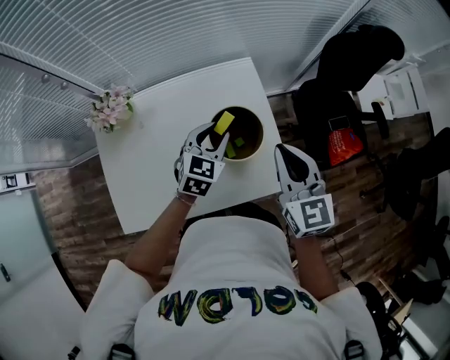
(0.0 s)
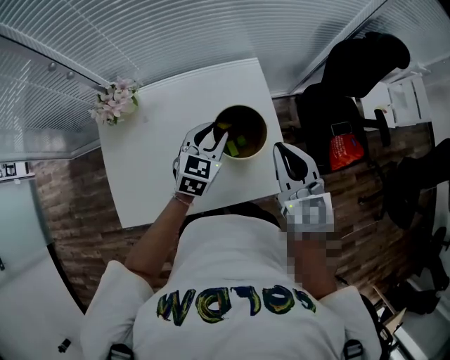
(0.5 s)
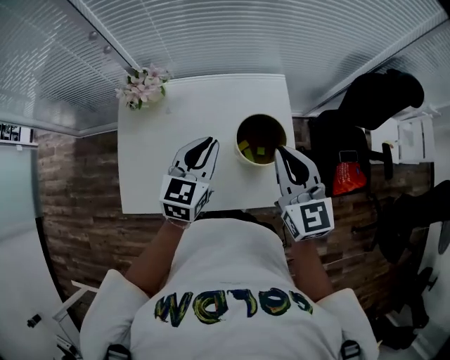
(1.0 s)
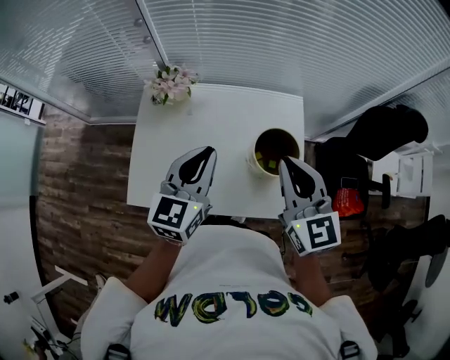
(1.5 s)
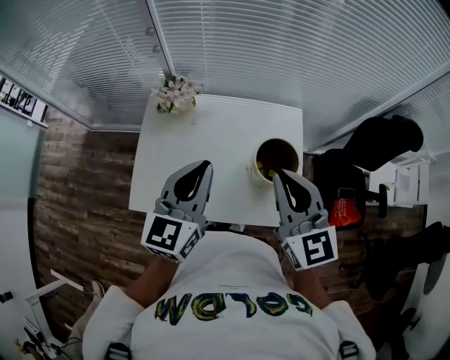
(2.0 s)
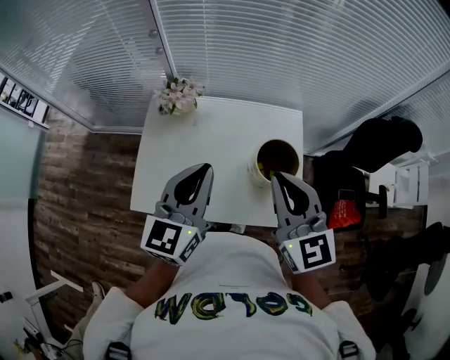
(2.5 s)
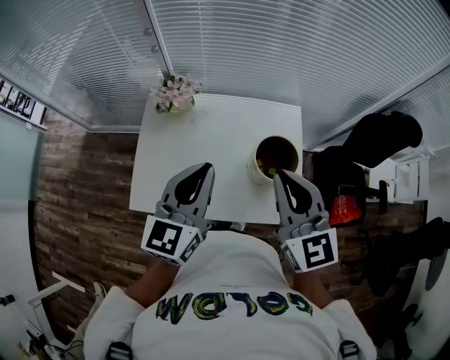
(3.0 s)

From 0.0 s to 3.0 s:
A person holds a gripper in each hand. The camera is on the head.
From 0.0 s to 1.5 s: The right gripper moves to the left and upward, some 15 cm, and swivels roughly 20 degrees; the left gripper goes some 25 cm upward, to the left and backward, rotates approximately 40 degrees, and closes up.
From 1.5 s to 3.0 s: The right gripper ends up about 5 cm from where it was. The left gripper is displaced upward by roughly 5 cm.

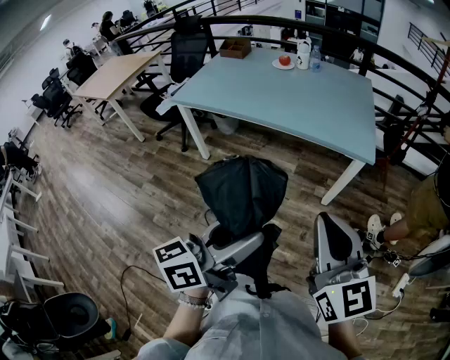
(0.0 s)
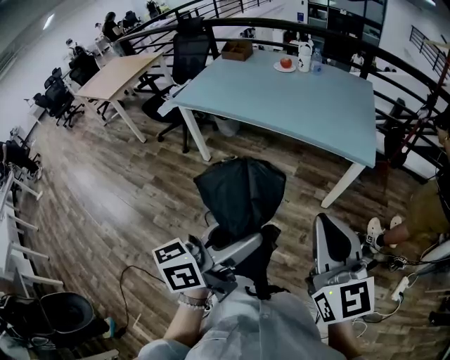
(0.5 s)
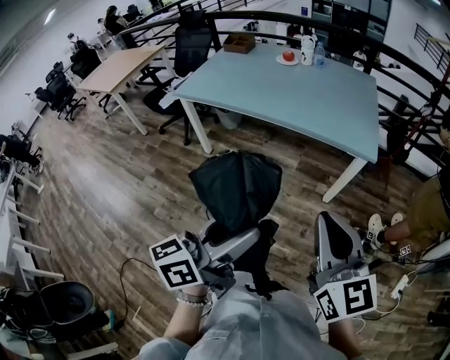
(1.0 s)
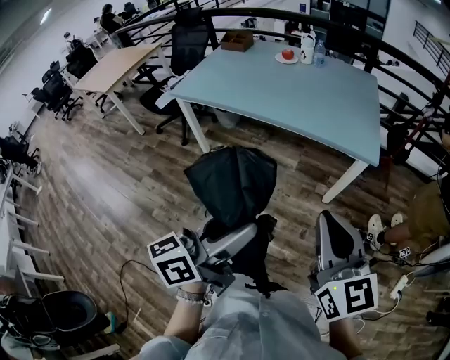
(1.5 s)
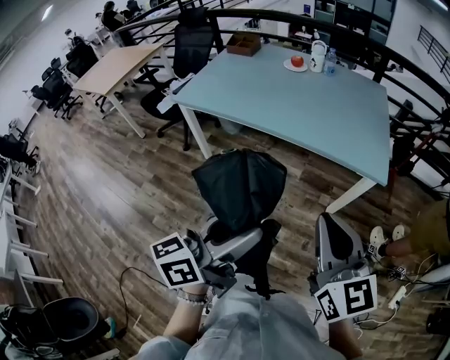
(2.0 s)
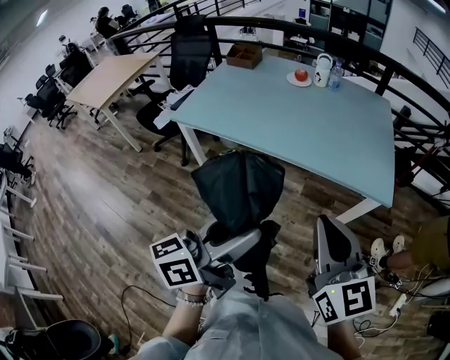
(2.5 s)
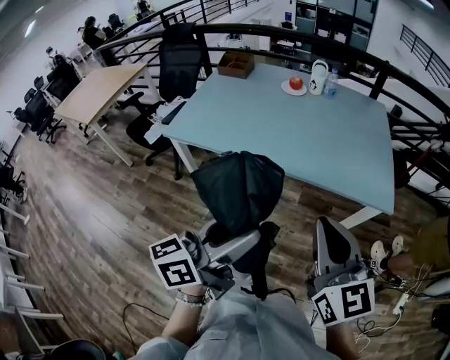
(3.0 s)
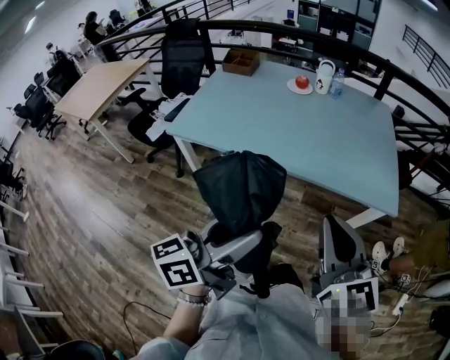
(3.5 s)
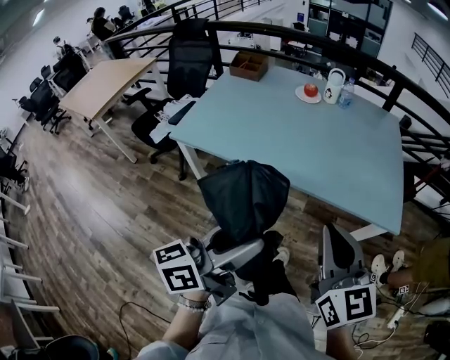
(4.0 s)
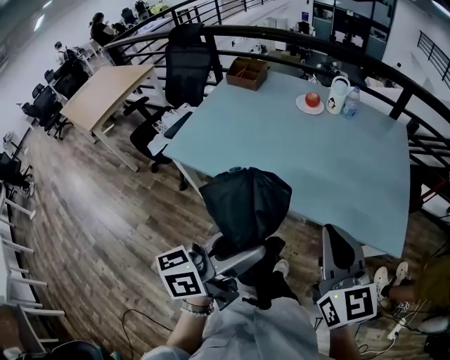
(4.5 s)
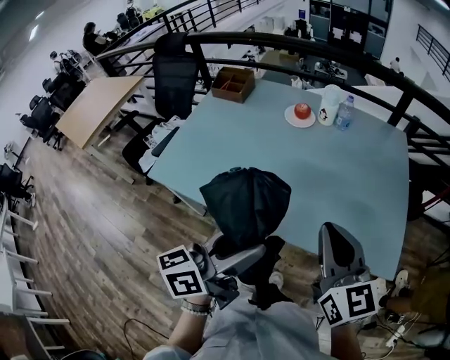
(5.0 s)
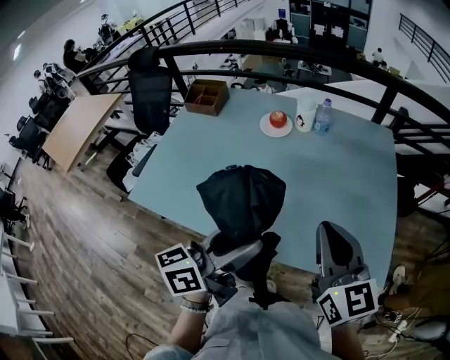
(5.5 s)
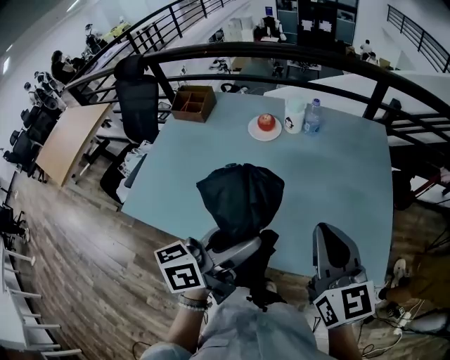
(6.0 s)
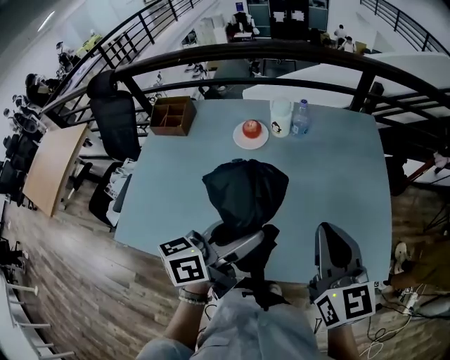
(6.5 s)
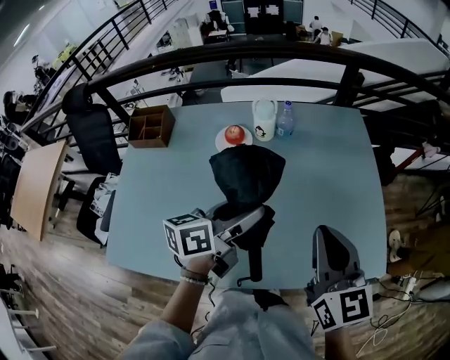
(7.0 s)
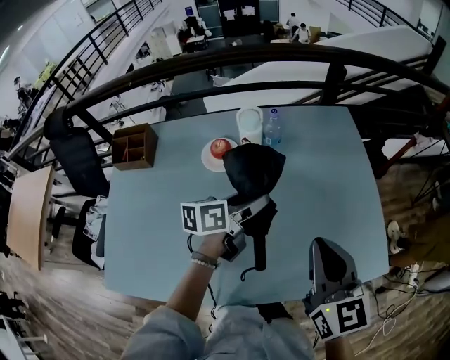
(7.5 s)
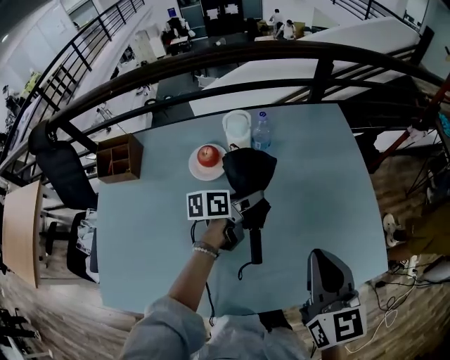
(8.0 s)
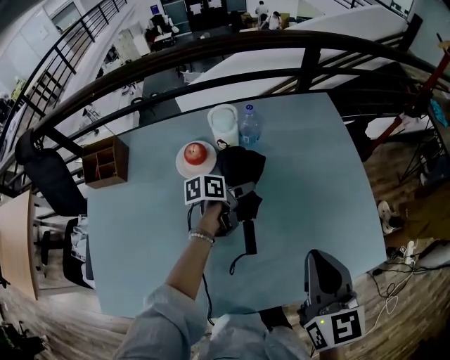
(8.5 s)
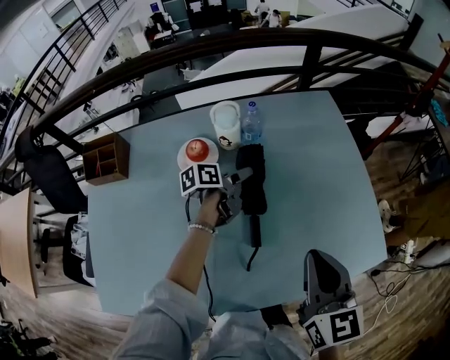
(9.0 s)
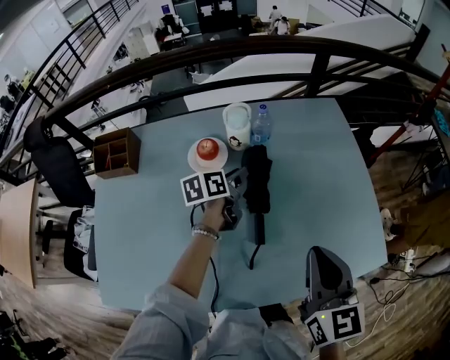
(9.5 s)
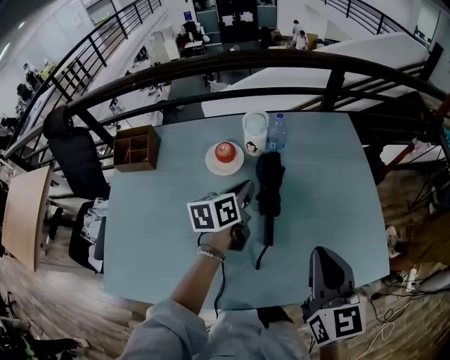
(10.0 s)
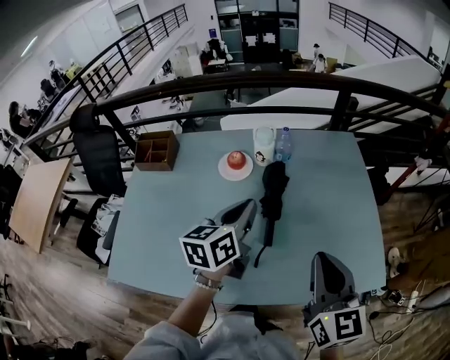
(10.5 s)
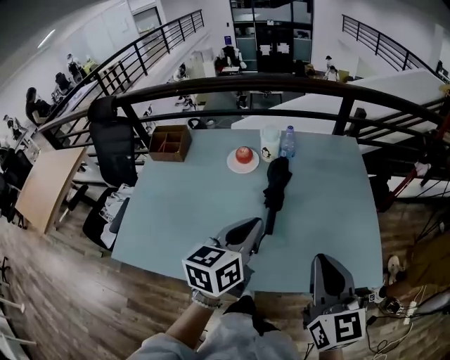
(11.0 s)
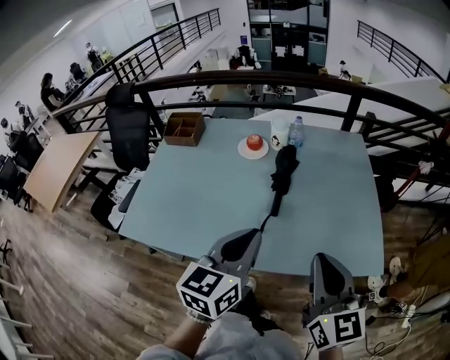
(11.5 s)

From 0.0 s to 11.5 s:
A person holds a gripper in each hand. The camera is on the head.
From 0.0 s to 2.0 s: The left gripper shifts approximately 10 cm forward and to the left; the right gripper goes about 10 cm forward.
From 2.0 s to 4.0 s: The grippers both shift forward and to the left by approximately 20 cm.
From 4.0 s to 6.0 s: Both grippers travel together forward, about 30 cm.
From 6.0 s to 7.5 s: The right gripper is displaced forward by about 10 cm, and changes its angle by about 20 degrees, while the left gripper travels forward and downward by some 30 cm, and rotates about 30 degrees.
From 7.5 s to 9.5 s: The left gripper heads forward, downward and to the left, covering roughly 15 cm, and closes up.
From 9.5 s to 11.5 s: The right gripper moves backward, roughly 15 cm, and rotates some 20 degrees. Meanwhile the left gripper goes approximately 40 cm backward and upward, rotates about 40 degrees, and closes its fingers.

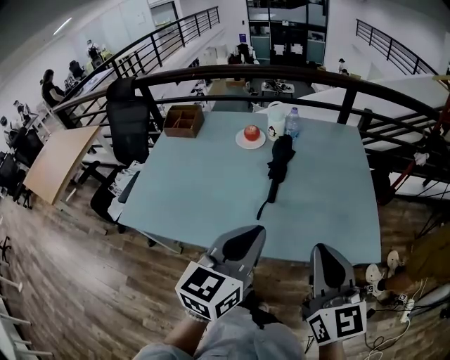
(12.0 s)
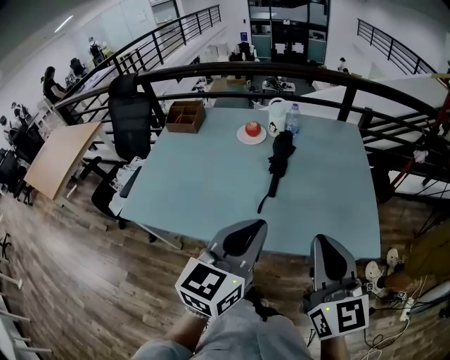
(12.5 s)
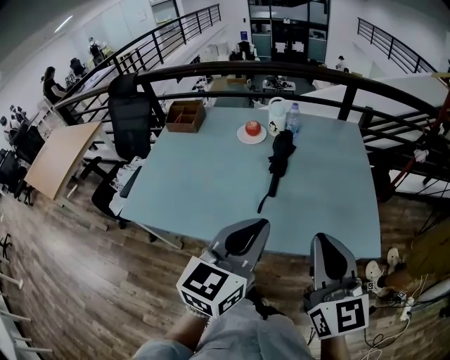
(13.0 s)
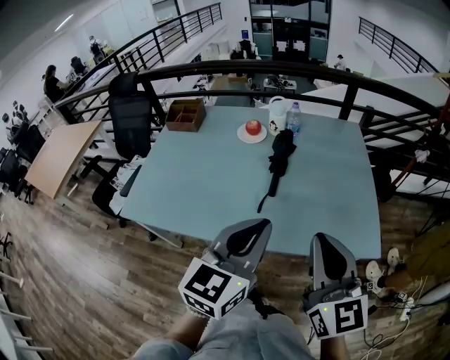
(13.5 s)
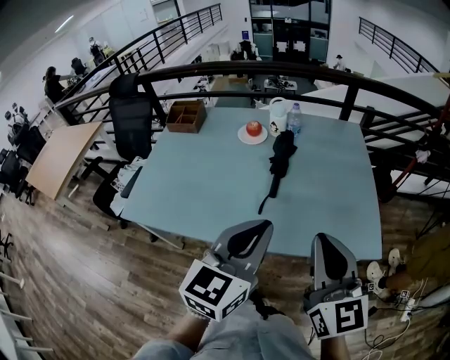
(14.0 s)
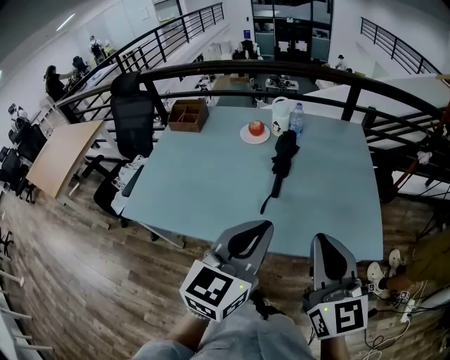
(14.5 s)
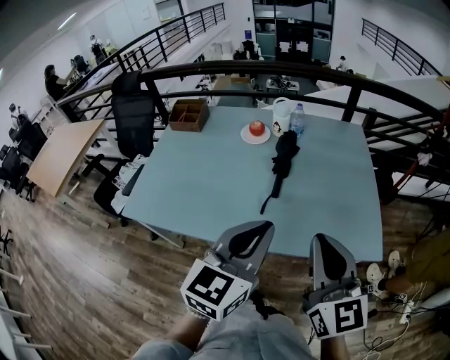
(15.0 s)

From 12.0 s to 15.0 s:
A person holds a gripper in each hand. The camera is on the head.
From 12.0 s to 13.5 s: The grippers make only small movements.
From 13.5 s to 15.0 s: The two grippers keep their place.

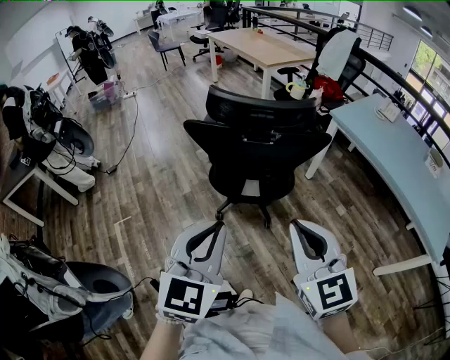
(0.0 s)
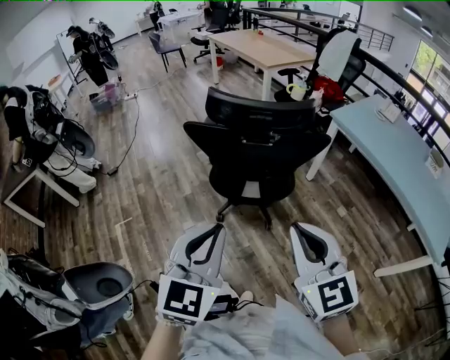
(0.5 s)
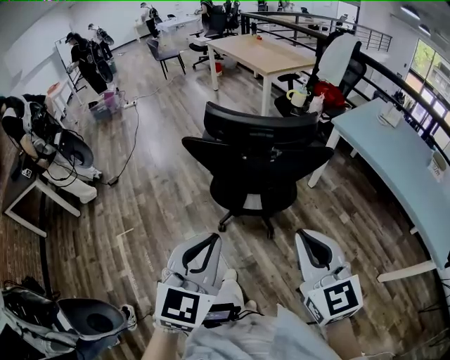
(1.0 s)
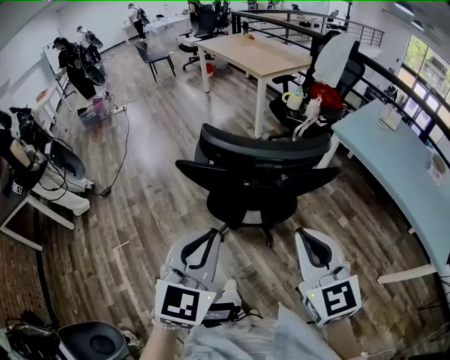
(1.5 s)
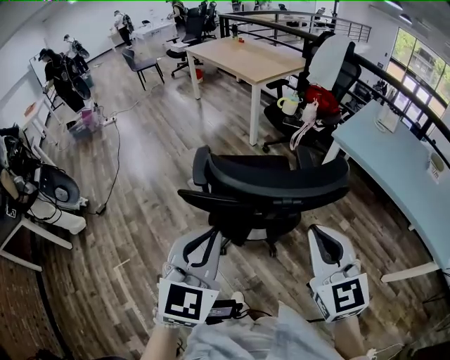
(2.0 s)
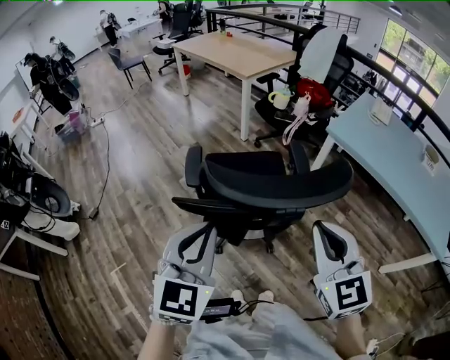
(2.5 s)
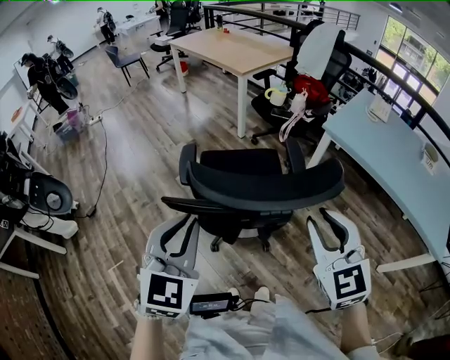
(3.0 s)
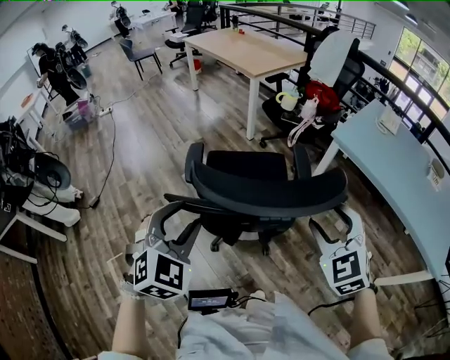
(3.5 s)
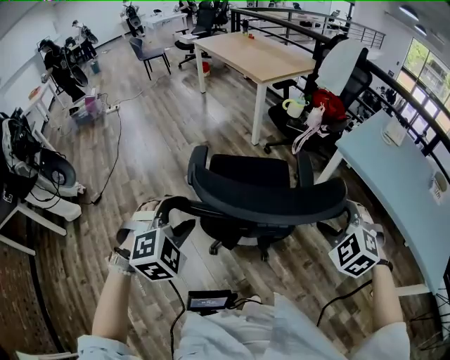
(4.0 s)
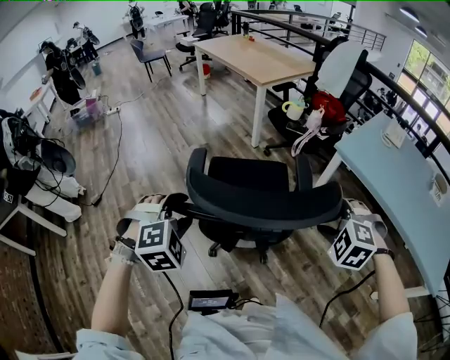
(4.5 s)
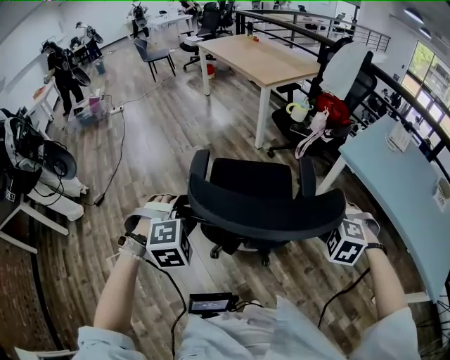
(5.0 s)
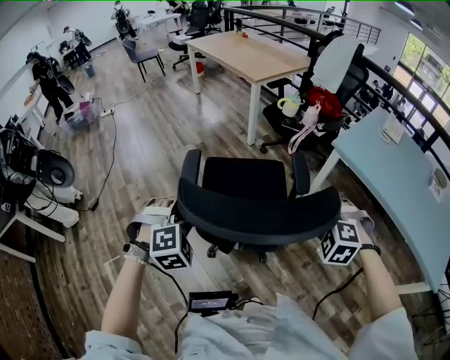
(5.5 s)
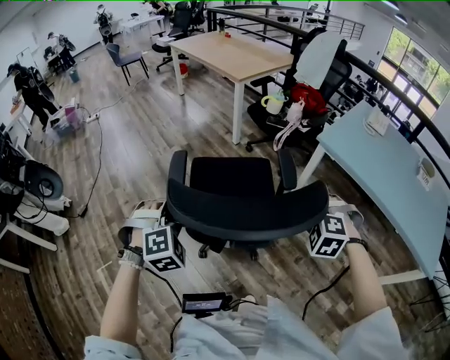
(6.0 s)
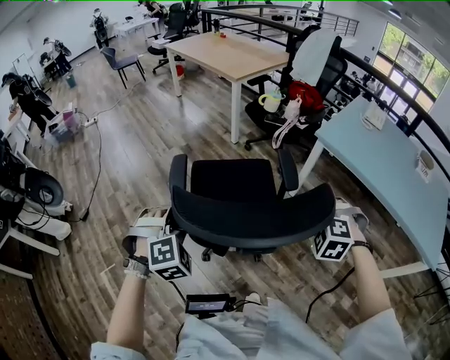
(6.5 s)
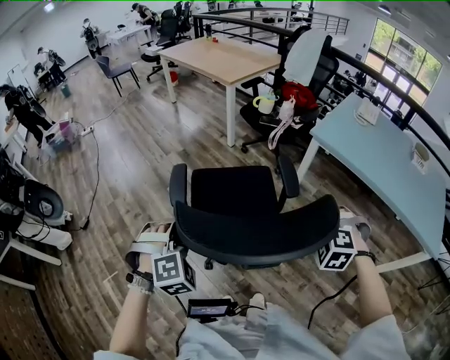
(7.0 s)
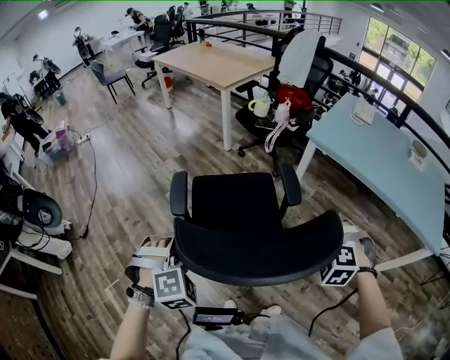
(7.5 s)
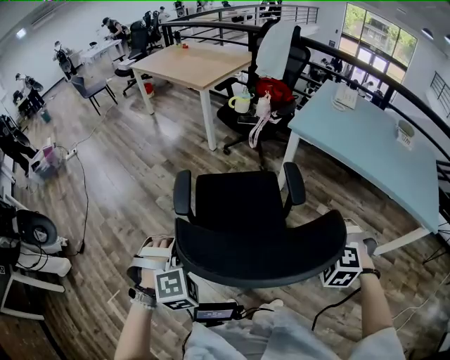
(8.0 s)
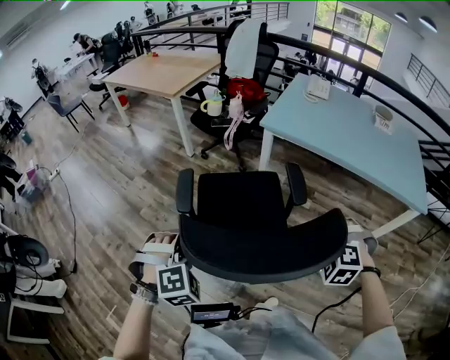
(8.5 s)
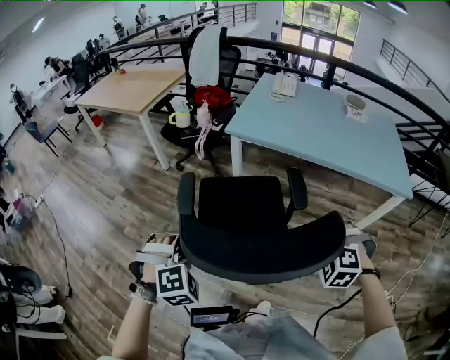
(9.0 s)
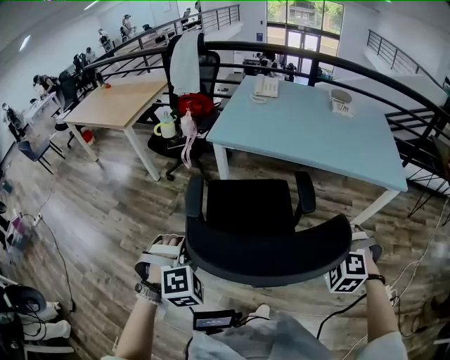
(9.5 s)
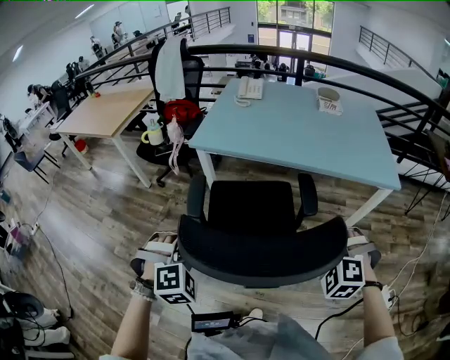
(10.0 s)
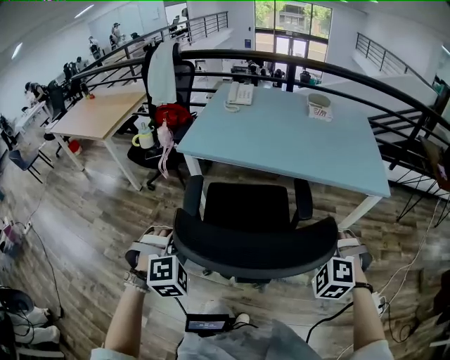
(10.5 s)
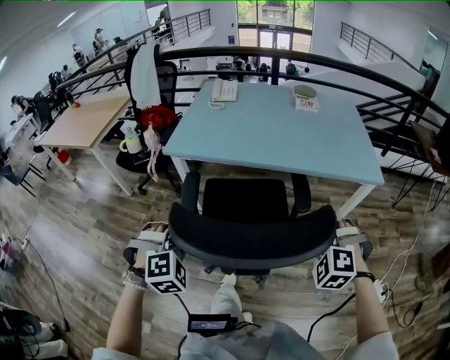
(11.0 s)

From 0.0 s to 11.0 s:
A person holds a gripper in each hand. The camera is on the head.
From 0.0 s to 2.0 s: The two grippers go some 20 cm forward.
From 2.0 s to 3.5 s: The right gripper heads forward, to the right and downward, covering some 10 cm, swivels about 30 degrees, and opens its fingers; the left gripper is displaced forward and downward by some 10 cm, turns by approximately 30 degrees, and opens up.
From 3.5 s to 5.5 s: The two grippers go approximately 10 cm downward and forward. The right gripper rotates some 40 degrees. Meanwhile the left gripper turns by some 30 degrees.
From 5.5 s to 7.5 s: The grippers both shift backward by approximately 10 cm.
From 7.5 s to 9.0 s: The two grippers go roughly 20 cm to the right. The left gripper turns by some 20 degrees; the right gripper swivels roughly 20 degrees.
From 9.0 s to 11.0 s: The right gripper goes roughly 20 cm to the right; the left gripper heads to the right and forward, covering some 25 cm.
